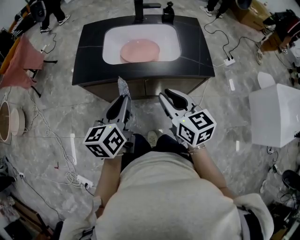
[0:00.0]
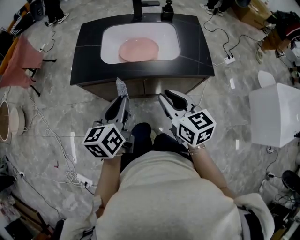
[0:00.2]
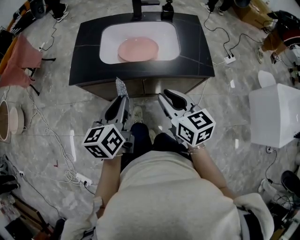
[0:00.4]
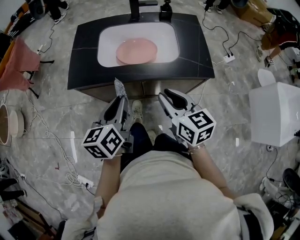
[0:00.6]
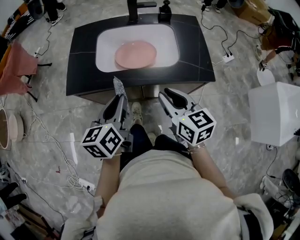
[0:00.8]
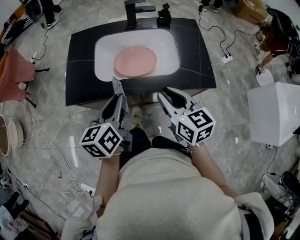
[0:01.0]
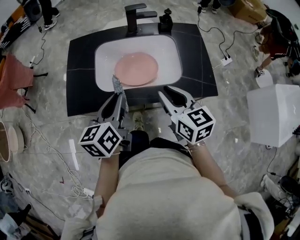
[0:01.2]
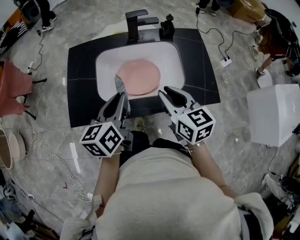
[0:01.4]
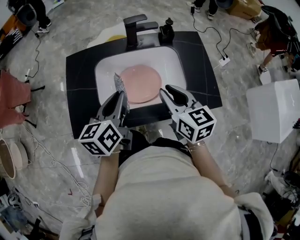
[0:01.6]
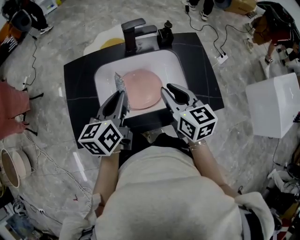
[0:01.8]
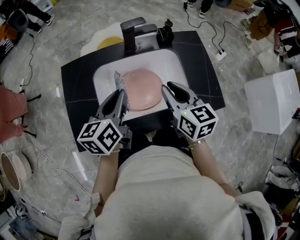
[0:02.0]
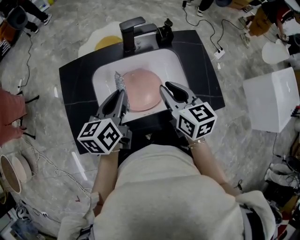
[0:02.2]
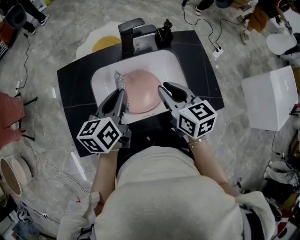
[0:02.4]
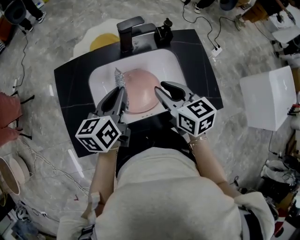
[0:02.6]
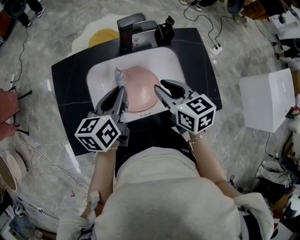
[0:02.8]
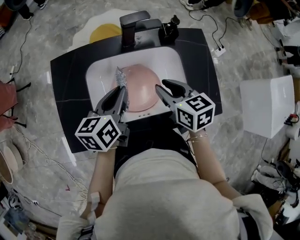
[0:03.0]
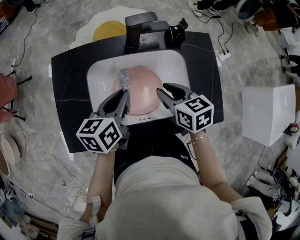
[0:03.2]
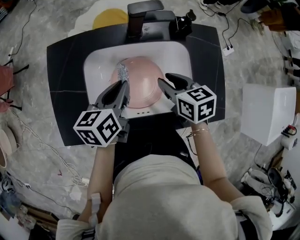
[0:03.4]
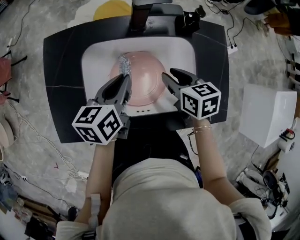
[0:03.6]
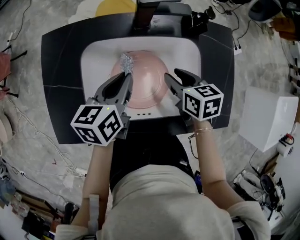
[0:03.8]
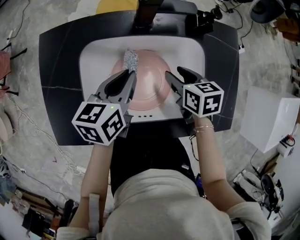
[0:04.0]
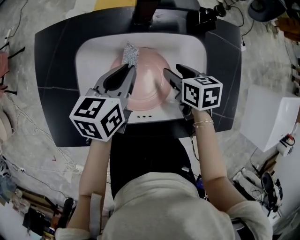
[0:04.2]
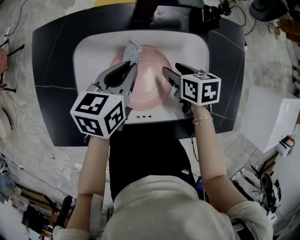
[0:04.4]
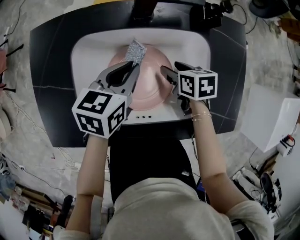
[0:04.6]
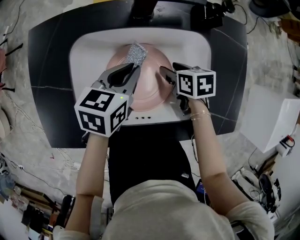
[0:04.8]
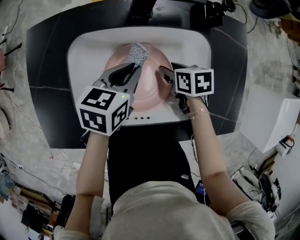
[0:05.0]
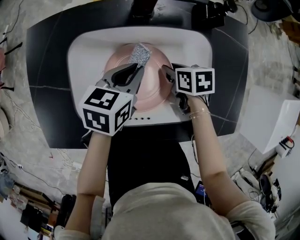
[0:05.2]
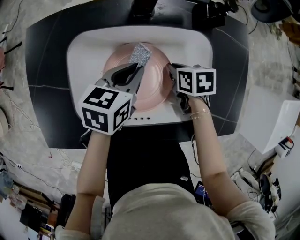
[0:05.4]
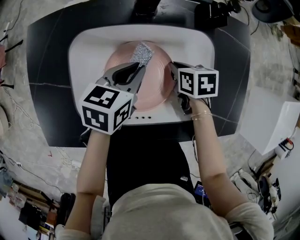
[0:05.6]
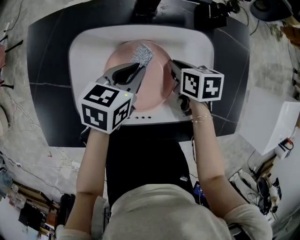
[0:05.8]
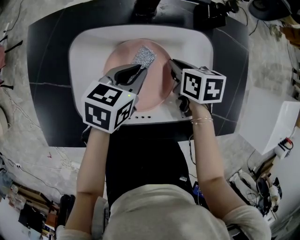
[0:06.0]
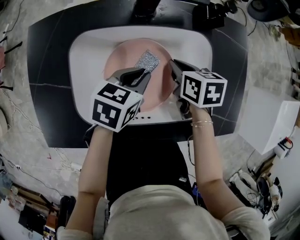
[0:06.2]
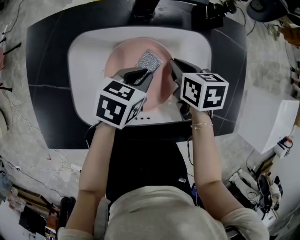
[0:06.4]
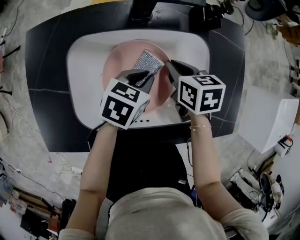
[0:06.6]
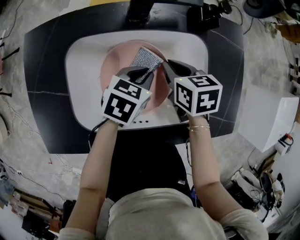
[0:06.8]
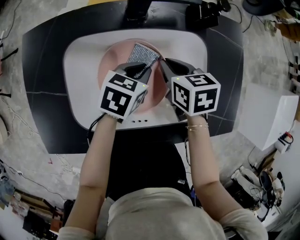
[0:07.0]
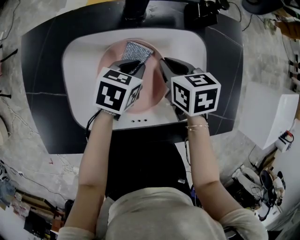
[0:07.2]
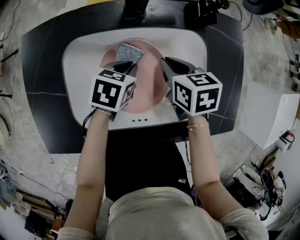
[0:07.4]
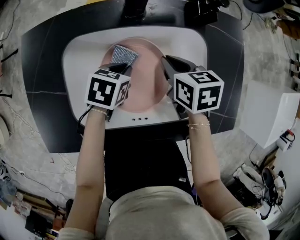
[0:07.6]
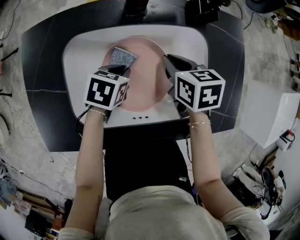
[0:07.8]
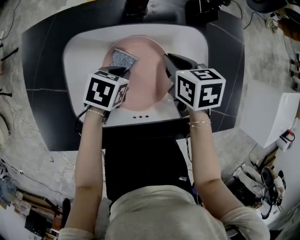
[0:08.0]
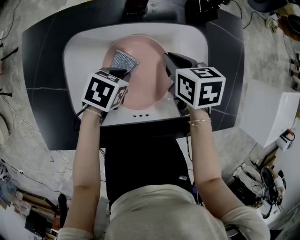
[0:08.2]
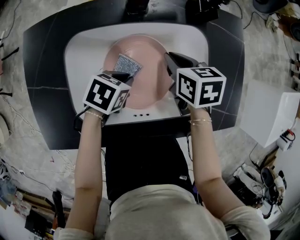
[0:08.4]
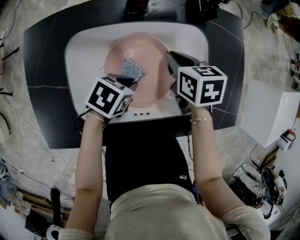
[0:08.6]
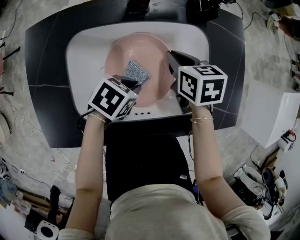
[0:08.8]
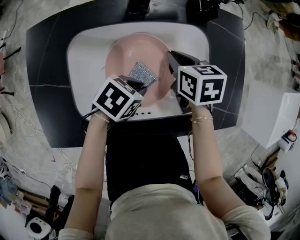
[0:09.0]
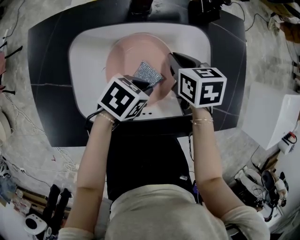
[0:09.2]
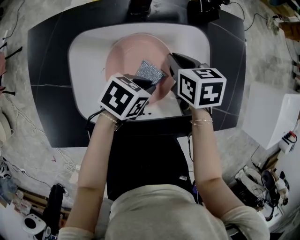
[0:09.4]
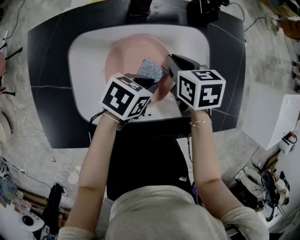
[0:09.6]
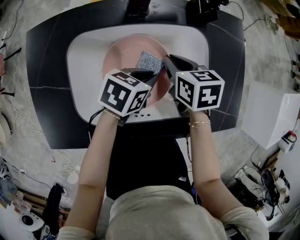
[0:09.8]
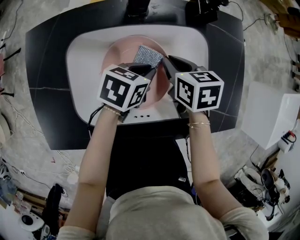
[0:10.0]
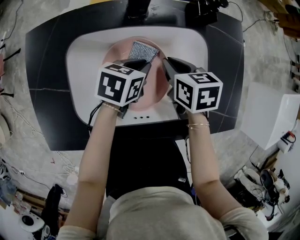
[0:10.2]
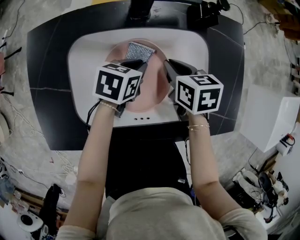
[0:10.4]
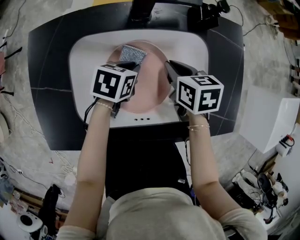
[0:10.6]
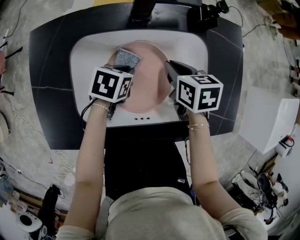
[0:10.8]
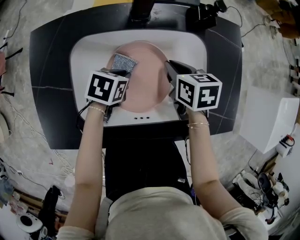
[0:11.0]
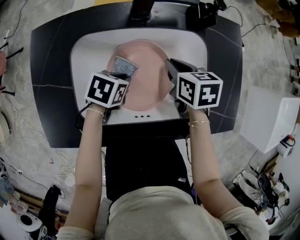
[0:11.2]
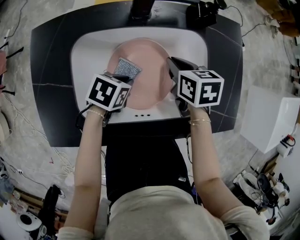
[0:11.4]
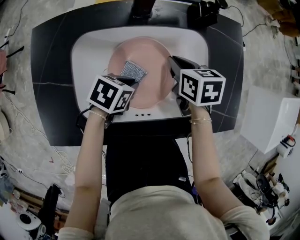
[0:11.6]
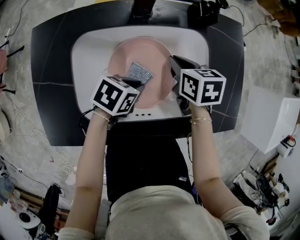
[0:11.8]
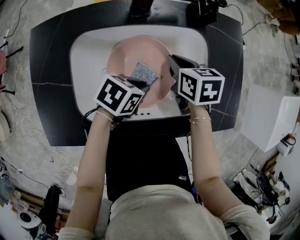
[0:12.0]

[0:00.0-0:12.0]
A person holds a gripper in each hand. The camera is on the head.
0:00.0 to 0:01.6: The two grippers go roughly 25 cm forward.
0:01.6 to 0:03.0: The left gripper goes approximately 10 cm forward. Meanwhile the right gripper travels forward and downward by approximately 10 cm.
0:03.0 to 0:04.4: The right gripper heads downward, covering roughly 20 cm, rotates roughly 20 degrees, and opens, while the left gripper moves downward and forward, approximately 10 cm.
0:04.4 to 0:06.0: The left gripper changes place by about 5 cm, while the right gripper closes up.
0:06.0 to 0:07.6: The left gripper moves downward, roughly 10 cm.
0:07.6 to 0:09.0: The left gripper moves backward and to the right, about 10 cm, and rotates some 20 degrees.
0:09.0 to 0:10.4: The left gripper shifts approximately 10 cm forward, and turns by roughly 20 degrees.
0:10.4 to 0:12.0: The left gripper goes approximately 10 cm backward.

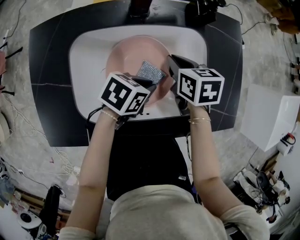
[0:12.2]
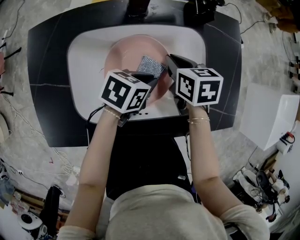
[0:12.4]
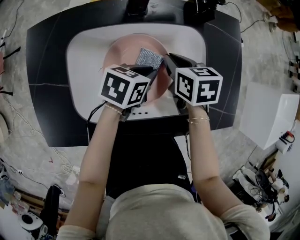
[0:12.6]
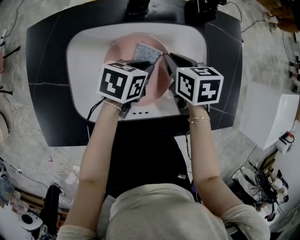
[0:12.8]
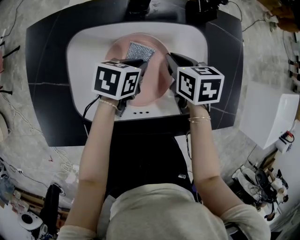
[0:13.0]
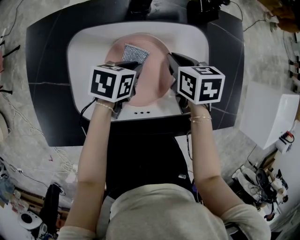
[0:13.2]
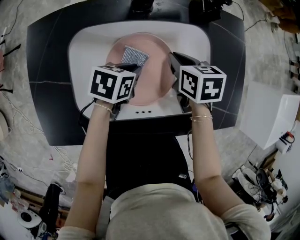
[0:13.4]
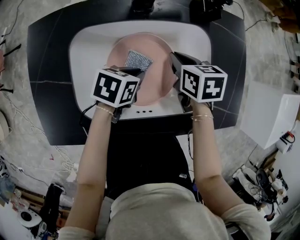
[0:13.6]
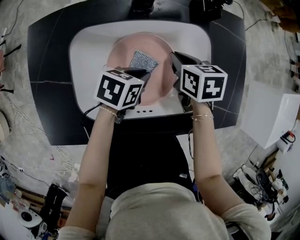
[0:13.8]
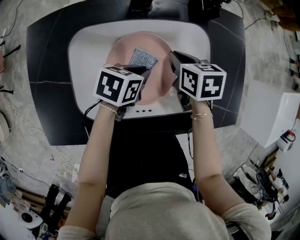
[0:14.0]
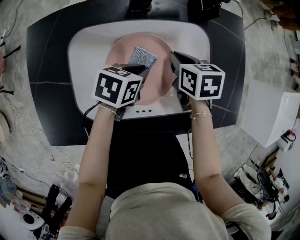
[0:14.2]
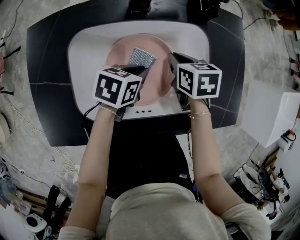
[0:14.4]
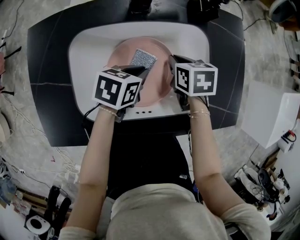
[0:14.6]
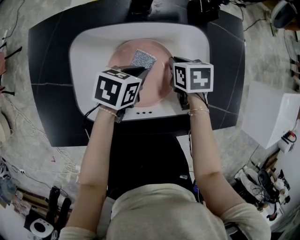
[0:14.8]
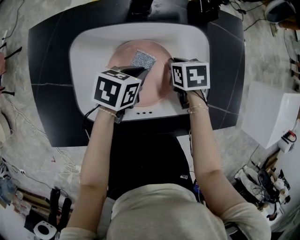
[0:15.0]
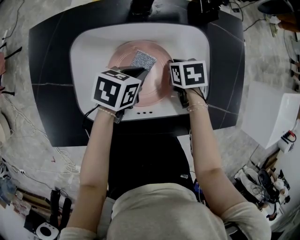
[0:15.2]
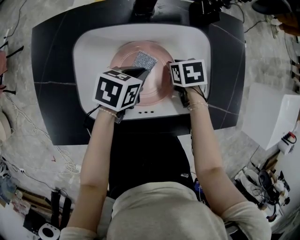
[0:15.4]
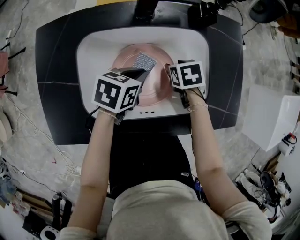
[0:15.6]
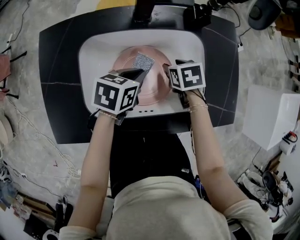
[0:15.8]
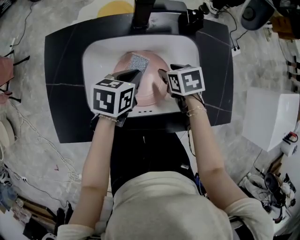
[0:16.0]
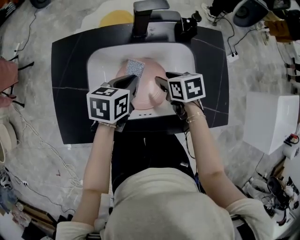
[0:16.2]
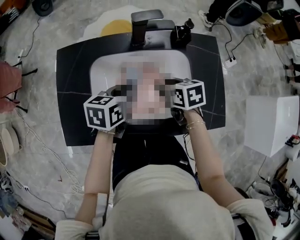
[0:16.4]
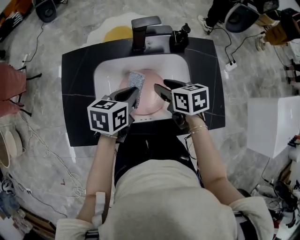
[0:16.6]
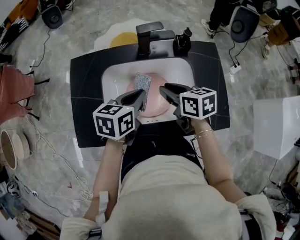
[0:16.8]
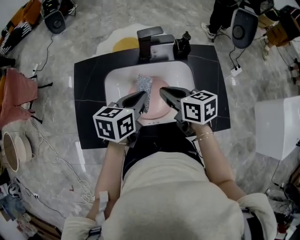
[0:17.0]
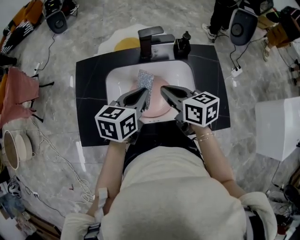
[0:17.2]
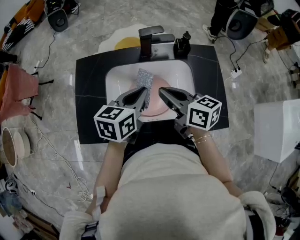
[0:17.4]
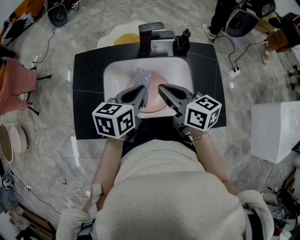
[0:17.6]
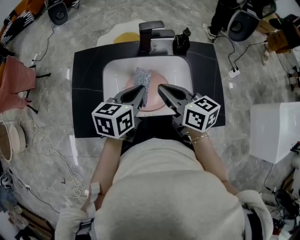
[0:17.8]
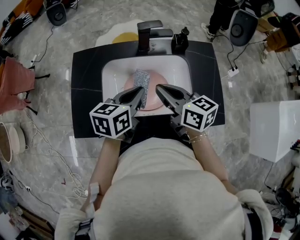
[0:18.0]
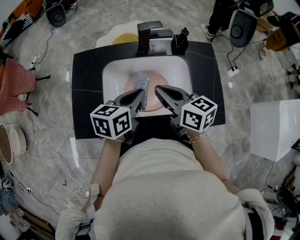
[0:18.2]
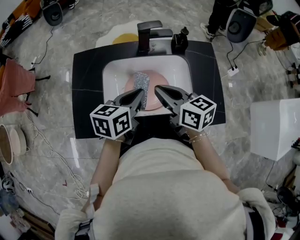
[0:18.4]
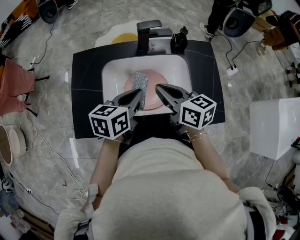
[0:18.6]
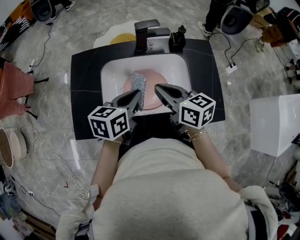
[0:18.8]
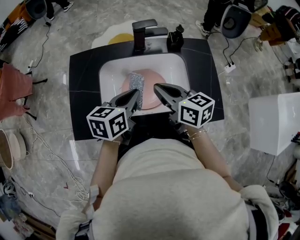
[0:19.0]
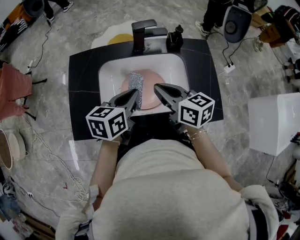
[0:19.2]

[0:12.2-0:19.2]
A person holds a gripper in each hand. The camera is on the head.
0:12.2 to 0:13.6: The left gripper shifts roughly 5 cm to the left.
0:13.6 to 0:15.0: The right gripper goes roughly 5 cm downward.
0:15.0 to 0:16.4: Both grippers travel together upward, approximately 10 cm. The right gripper opens its fingers.
0:16.4 to 0:17.8: The left gripper moves upward, approximately 10 cm. Meanwhile the right gripper is displaced upward by roughly 15 cm, tips its fingers upward by approximately 30 degrees, and closes.
0:17.8 to 0:19.2: The grippers make only small movements.

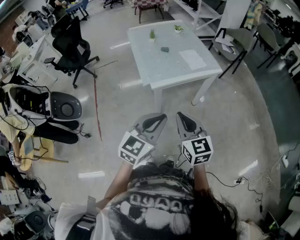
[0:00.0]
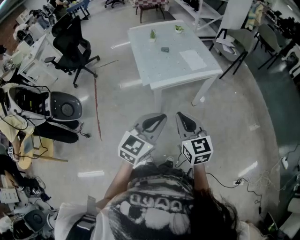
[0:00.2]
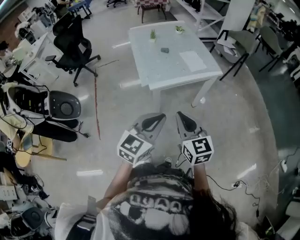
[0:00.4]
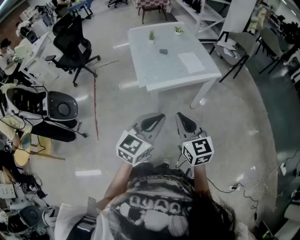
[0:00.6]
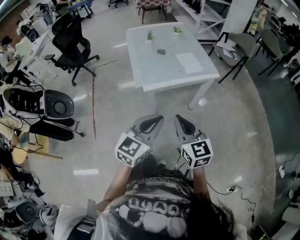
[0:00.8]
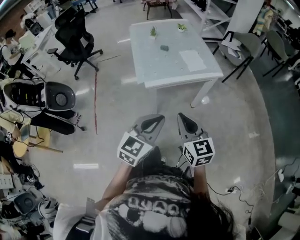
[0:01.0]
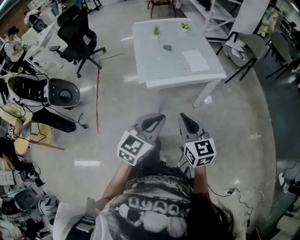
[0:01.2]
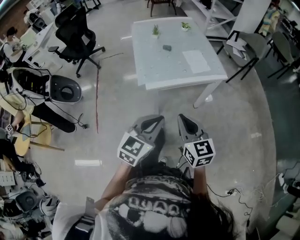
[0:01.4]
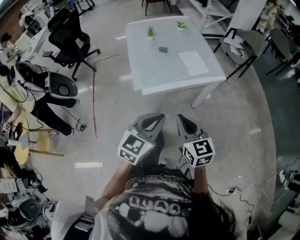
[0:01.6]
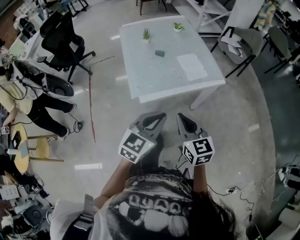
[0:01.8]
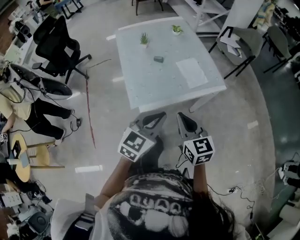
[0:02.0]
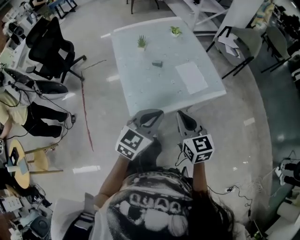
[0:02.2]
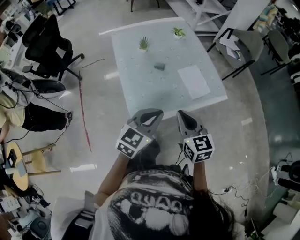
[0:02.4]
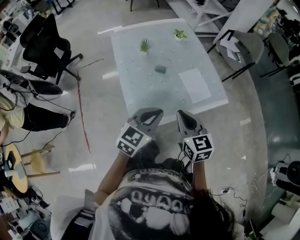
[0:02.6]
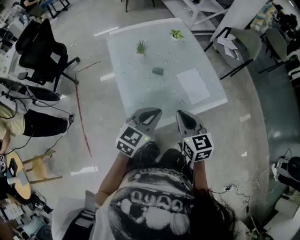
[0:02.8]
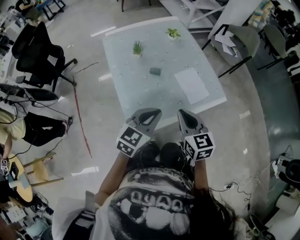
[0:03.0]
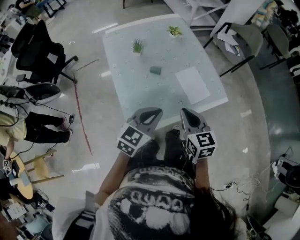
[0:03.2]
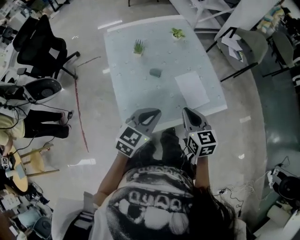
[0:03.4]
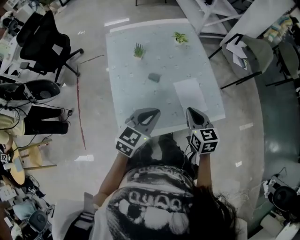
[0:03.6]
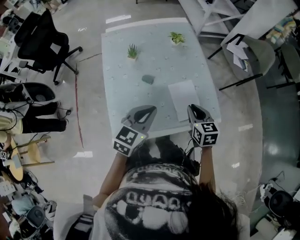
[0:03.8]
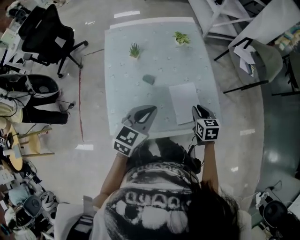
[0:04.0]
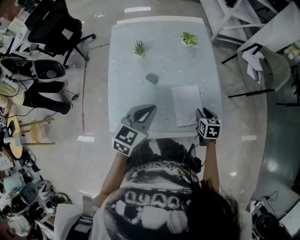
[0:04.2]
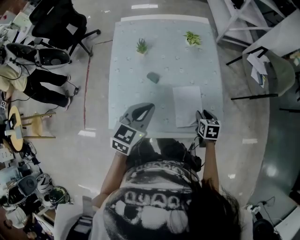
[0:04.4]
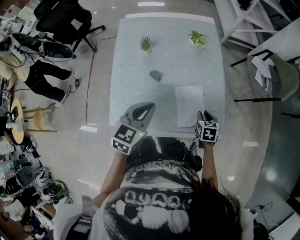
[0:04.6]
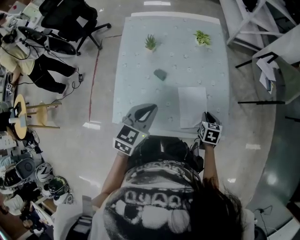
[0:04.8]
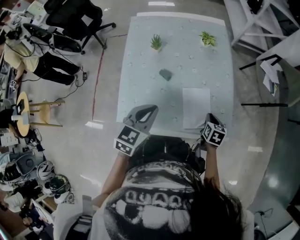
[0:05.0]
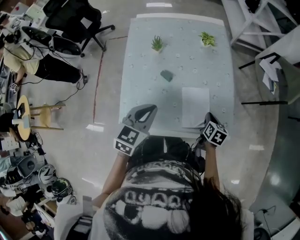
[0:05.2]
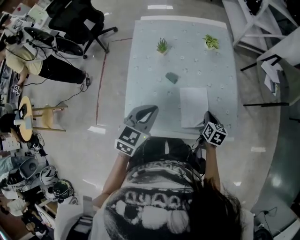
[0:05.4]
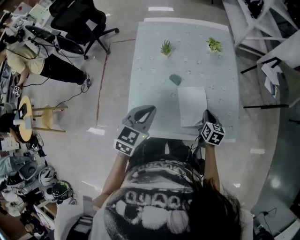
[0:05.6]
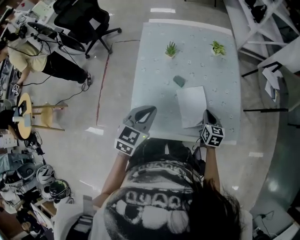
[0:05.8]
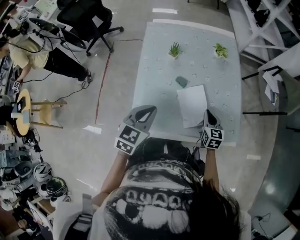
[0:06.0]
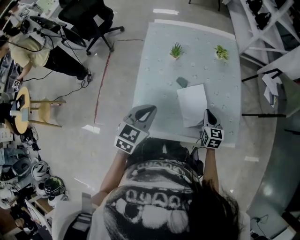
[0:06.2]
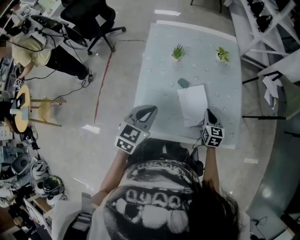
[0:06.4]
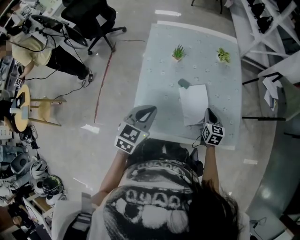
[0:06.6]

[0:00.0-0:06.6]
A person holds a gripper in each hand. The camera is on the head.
0:00.0 to 0:01.6: The left gripper goes about 15 cm forward, to the right and downward. Meanwhile the right gripper goes roughly 10 cm forward and to the right.
0:01.6 to 0:03.2: The two grippers go approximately 30 cm forward.
0:03.2 to 0:05.0: The right gripper shifts approximately 35 cm downward, to the right and forward, changes its angle by roughly 30 degrees, and opens, then closes once more; the left gripper travels forward by about 10 cm, and swivels about 30 degrees.
0:05.0 to 0:06.6: Both grippers travel together to the left, about 10 cm. The right gripper swivels about 20 degrees.